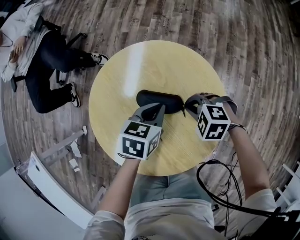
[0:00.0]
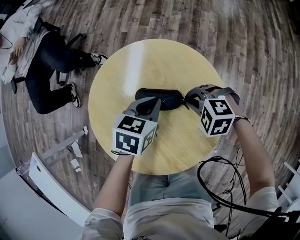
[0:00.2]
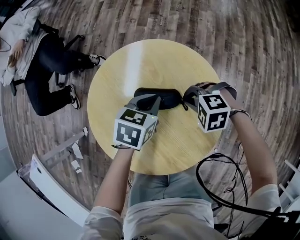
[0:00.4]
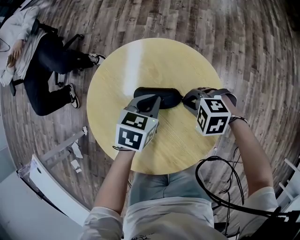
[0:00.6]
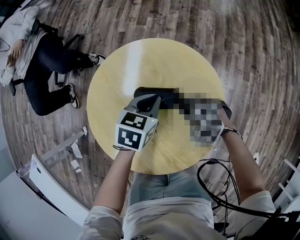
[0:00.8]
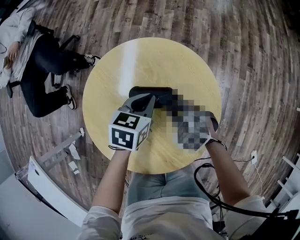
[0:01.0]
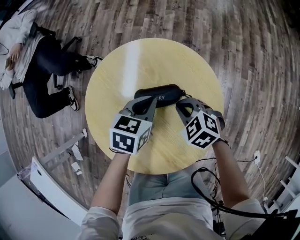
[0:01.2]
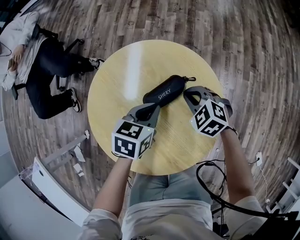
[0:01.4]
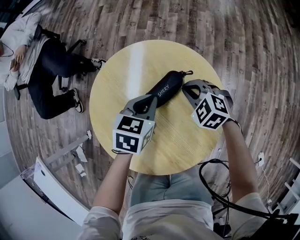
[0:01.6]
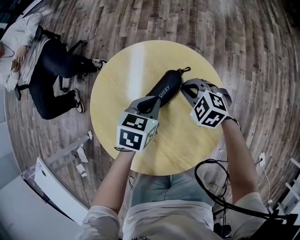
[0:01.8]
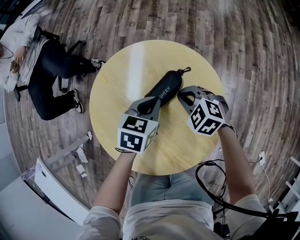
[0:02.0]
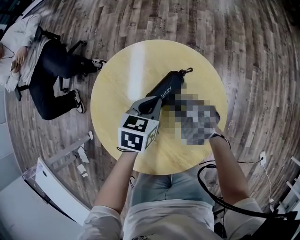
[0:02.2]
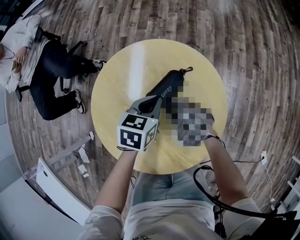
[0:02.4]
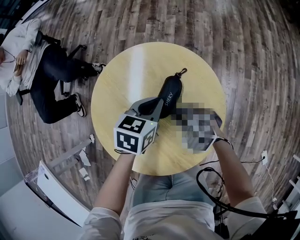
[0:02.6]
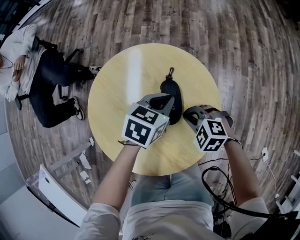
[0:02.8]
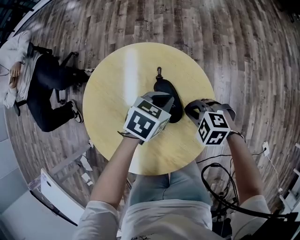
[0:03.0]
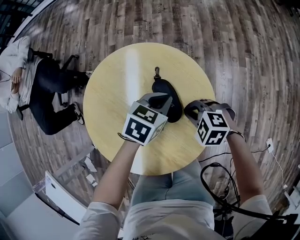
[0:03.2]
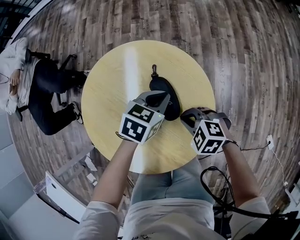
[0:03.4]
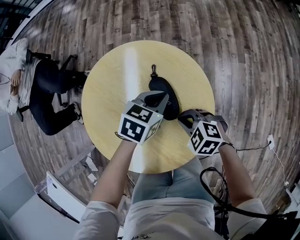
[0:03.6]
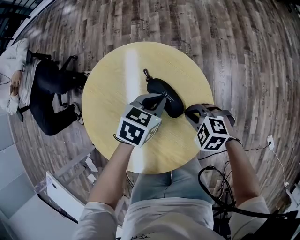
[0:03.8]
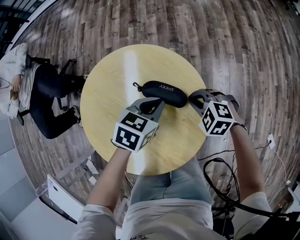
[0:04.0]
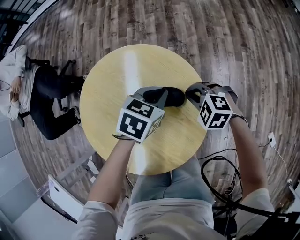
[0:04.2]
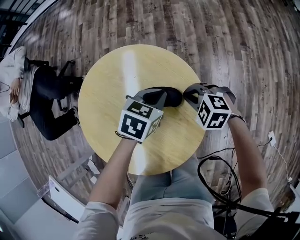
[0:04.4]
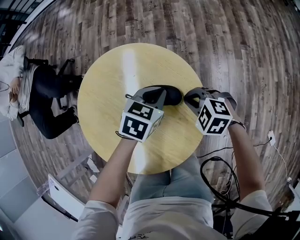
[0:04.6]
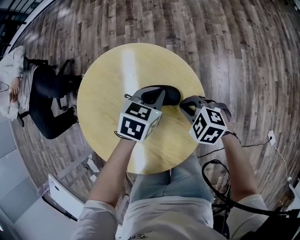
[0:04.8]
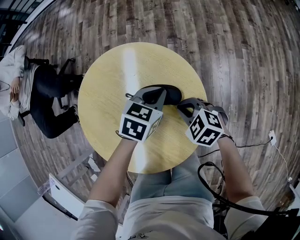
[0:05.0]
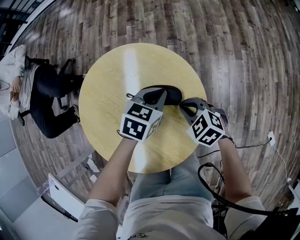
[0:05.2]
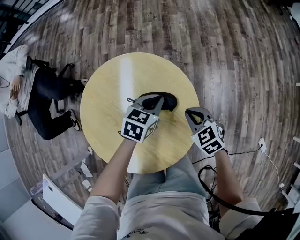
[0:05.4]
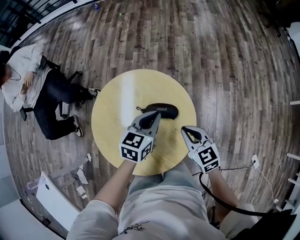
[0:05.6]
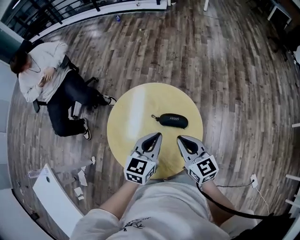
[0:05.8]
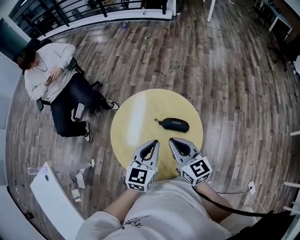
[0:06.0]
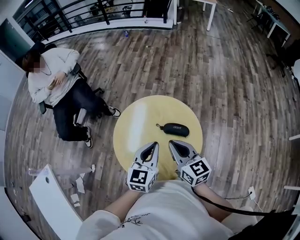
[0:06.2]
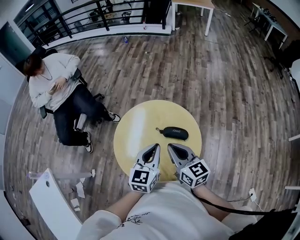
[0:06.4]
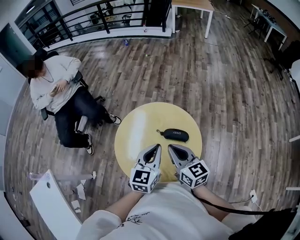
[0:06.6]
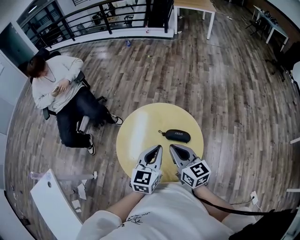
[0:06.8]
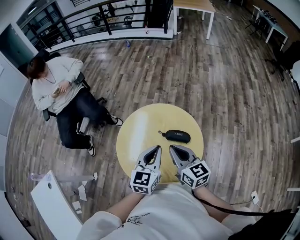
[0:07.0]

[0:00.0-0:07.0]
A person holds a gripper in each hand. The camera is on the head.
0:00.0 to 0:01.4: The right gripper turns by about 30 degrees.
0:01.4 to 0:02.8: The left gripper shifts by about 5 cm; the right gripper changes place by approximately 10 cm.
0:02.8 to 0:04.2: The right gripper moves roughly 10 cm, while the left gripper moves approximately 5 cm.
0:04.2 to 0:05.6: The left gripper shifts about 10 cm upward, and rotates roughly 30 degrees; the right gripper goes approximately 15 cm upward and backward, and turns by some 50 degrees.
0:05.6 to 0:07.0: The right gripper heads upward and to the left, covering roughly 25 cm, and changes its angle by approximately 20 degrees, while the left gripper moves upward, to the left and backward, about 20 cm, and swivels roughly 20 degrees.

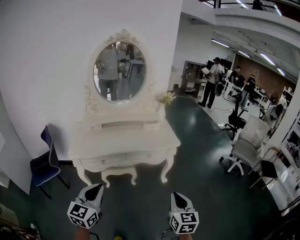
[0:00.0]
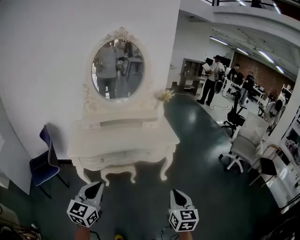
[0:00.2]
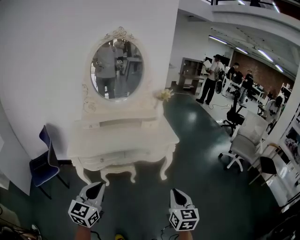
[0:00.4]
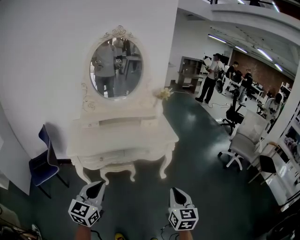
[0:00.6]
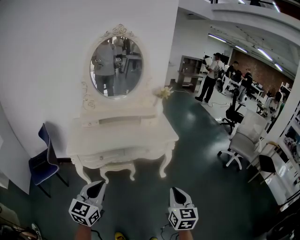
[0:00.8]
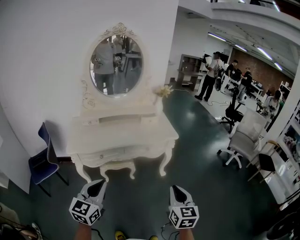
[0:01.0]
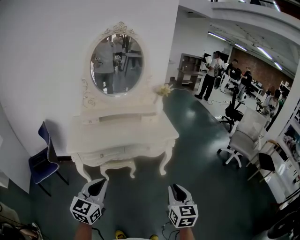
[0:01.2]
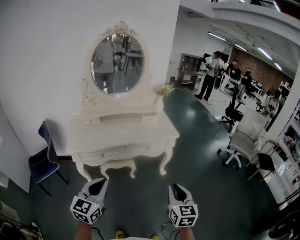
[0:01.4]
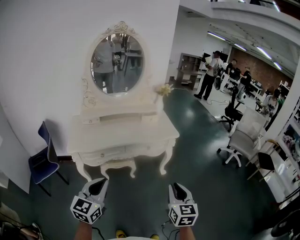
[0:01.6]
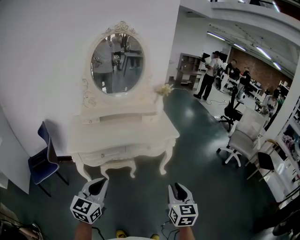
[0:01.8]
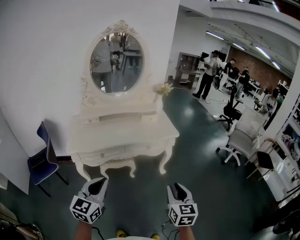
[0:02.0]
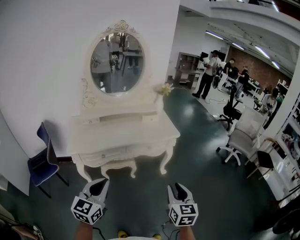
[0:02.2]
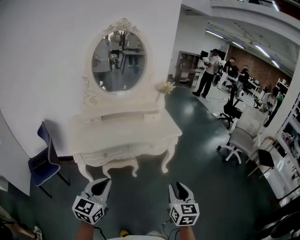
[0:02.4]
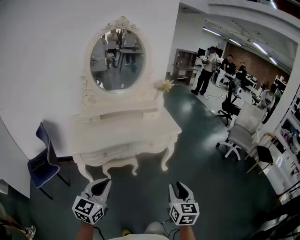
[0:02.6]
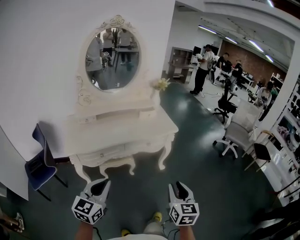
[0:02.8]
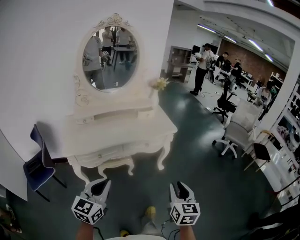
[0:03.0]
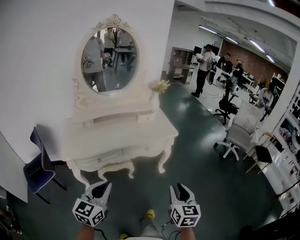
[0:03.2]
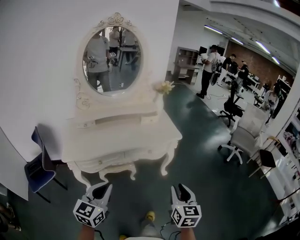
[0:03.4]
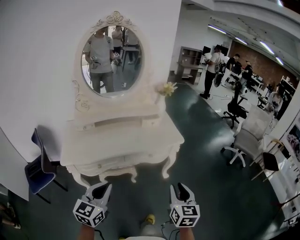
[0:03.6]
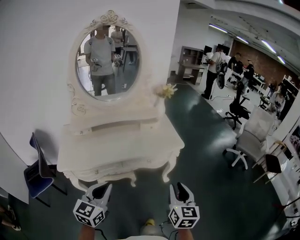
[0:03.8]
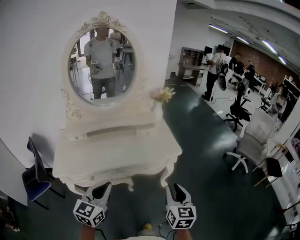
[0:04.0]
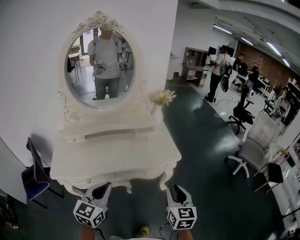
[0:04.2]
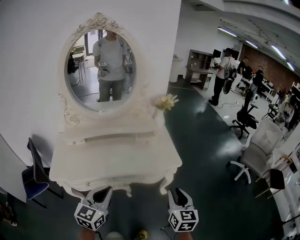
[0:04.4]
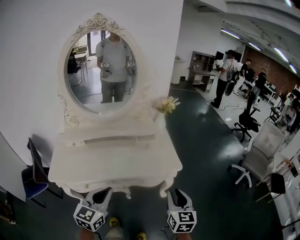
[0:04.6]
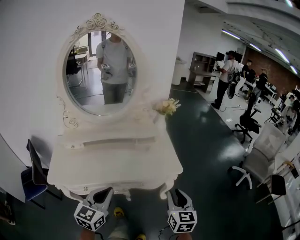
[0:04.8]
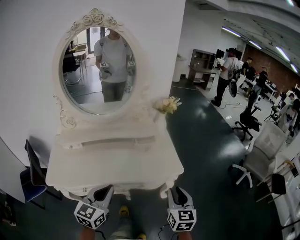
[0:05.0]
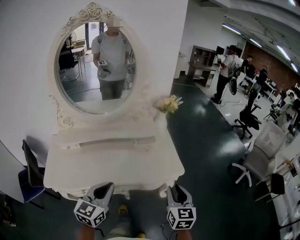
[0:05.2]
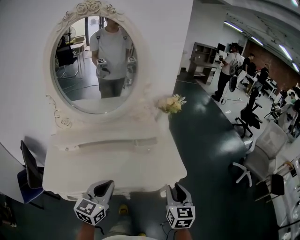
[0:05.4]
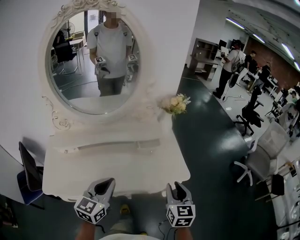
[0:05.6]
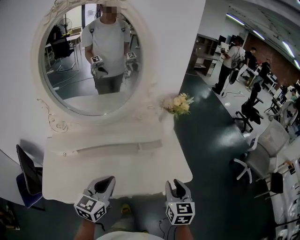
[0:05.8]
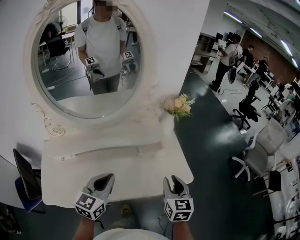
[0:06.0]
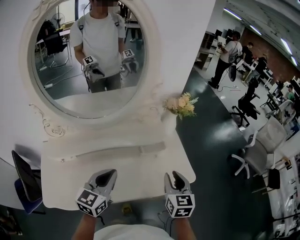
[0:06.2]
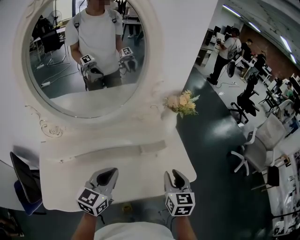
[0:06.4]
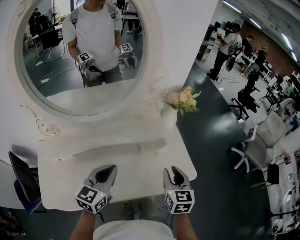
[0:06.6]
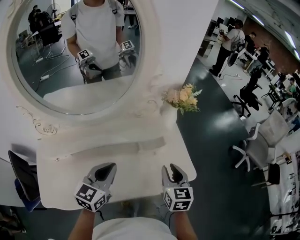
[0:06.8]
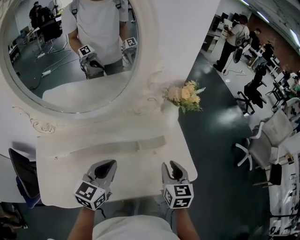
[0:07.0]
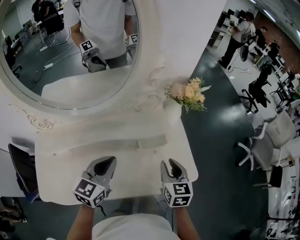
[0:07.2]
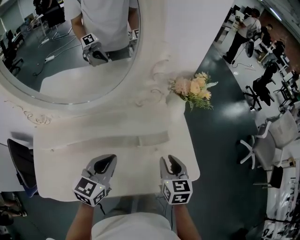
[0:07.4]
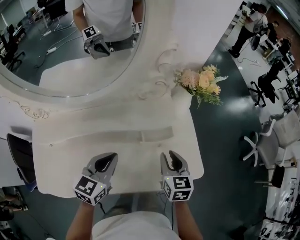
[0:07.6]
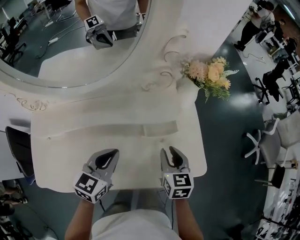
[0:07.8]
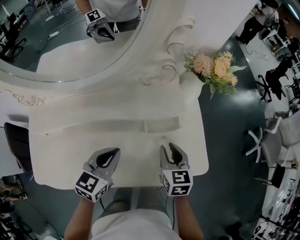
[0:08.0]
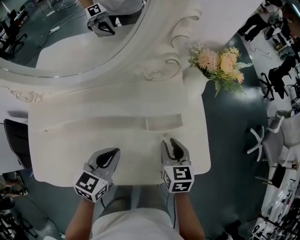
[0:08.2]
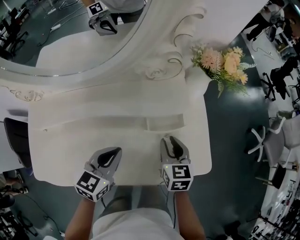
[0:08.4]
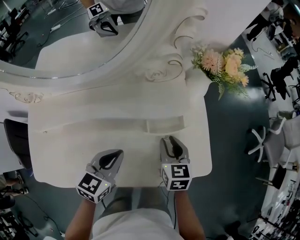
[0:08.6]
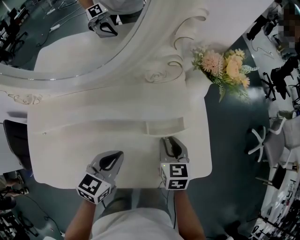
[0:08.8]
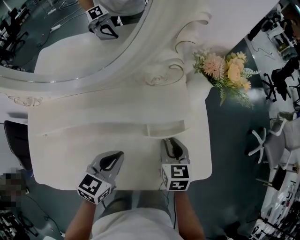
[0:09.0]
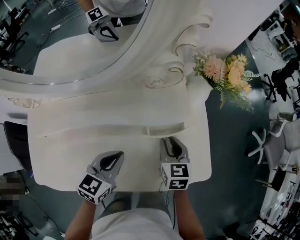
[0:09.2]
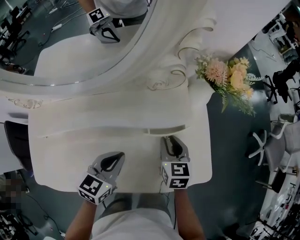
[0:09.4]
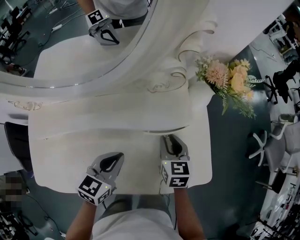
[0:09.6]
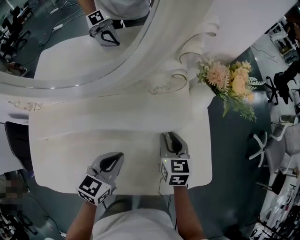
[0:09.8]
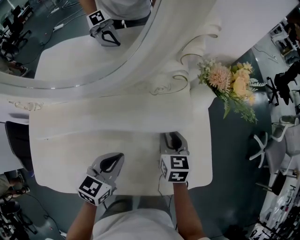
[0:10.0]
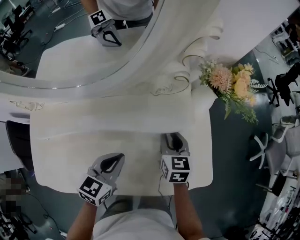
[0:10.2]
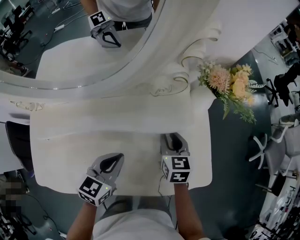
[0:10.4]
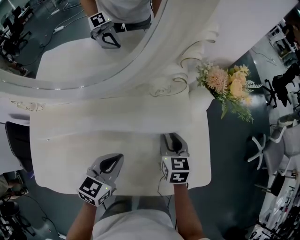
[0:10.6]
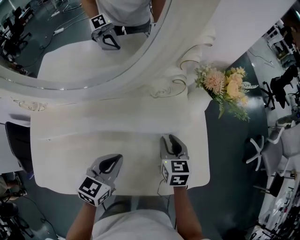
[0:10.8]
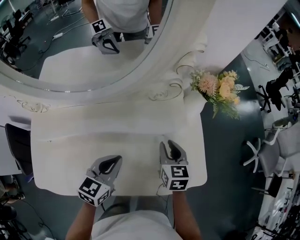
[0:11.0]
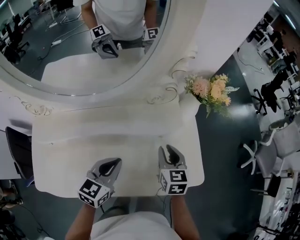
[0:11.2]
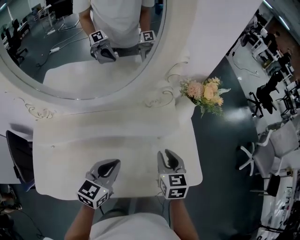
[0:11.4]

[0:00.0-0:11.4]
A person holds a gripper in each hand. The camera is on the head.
0:00.0 to 0:01.4: The grippers move only a little.
0:01.4 to 0:02.8: The left gripper moves approximately 5 cm.
0:02.8 to 0:04.2: Both grippers move forward, about 30 cm.
0:04.2 to 0:05.6: Both grippers move forward, roughly 20 cm.
0:05.6 to 0:07.2: The left gripper goes approximately 20 cm forward. Meanwhile the right gripper shifts roughly 20 cm forward and to the left.
0:07.2 to 0:08.6: The left gripper heads downward, covering about 15 cm. The right gripper travels downward and forward by approximately 15 cm.
0:08.6 to 0:10.0: The right gripper goes some 10 cm forward.
0:10.0 to 0:11.4: The right gripper is displaced backward and upward by approximately 10 cm; the left gripper shifts approximately 5 cm upward.

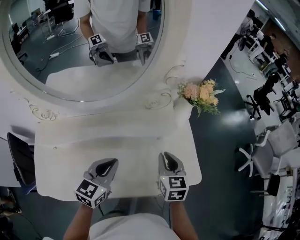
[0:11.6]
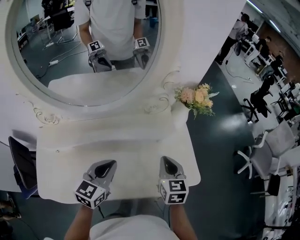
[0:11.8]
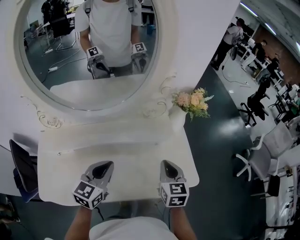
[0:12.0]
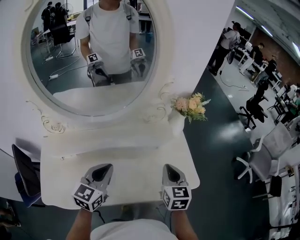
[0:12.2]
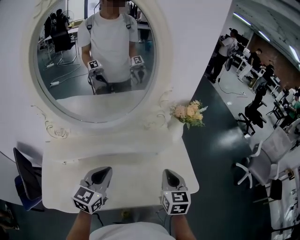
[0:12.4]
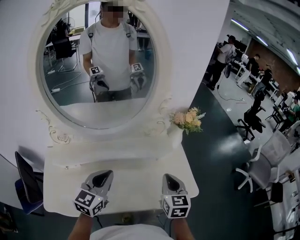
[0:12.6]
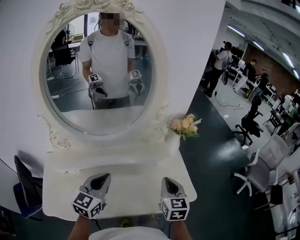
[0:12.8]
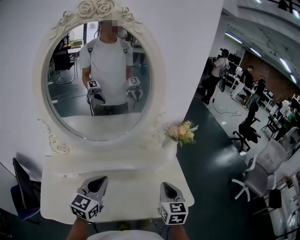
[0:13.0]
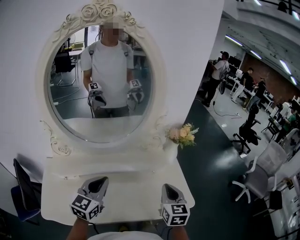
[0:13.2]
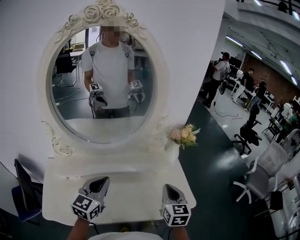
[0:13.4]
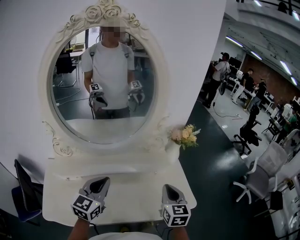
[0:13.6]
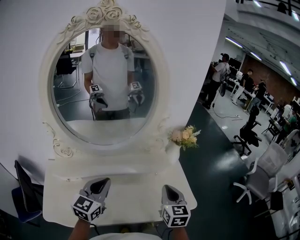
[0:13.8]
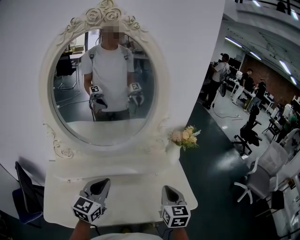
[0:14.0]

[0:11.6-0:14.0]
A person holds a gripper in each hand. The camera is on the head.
0:11.6 to 0:12.8: The right gripper moves upward and backward, approximately 10 cm, while the left gripper goes approximately 10 cm upward.
0:12.8 to 0:14.0: There are only small adjustments of the grippers.

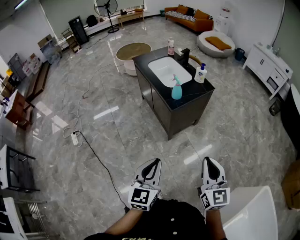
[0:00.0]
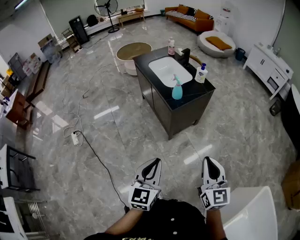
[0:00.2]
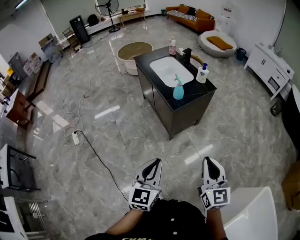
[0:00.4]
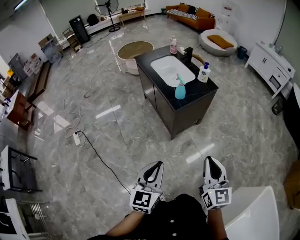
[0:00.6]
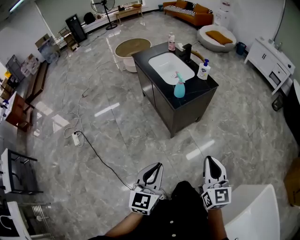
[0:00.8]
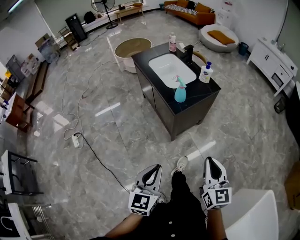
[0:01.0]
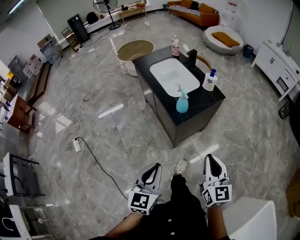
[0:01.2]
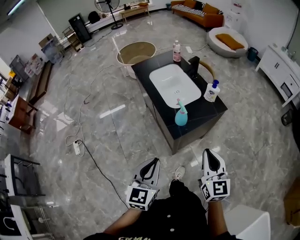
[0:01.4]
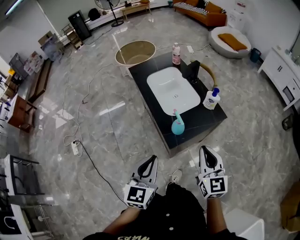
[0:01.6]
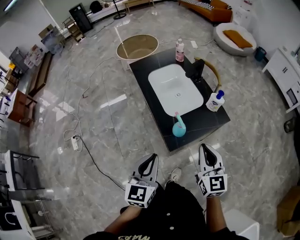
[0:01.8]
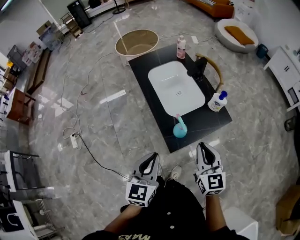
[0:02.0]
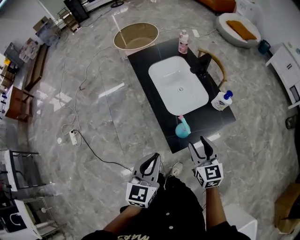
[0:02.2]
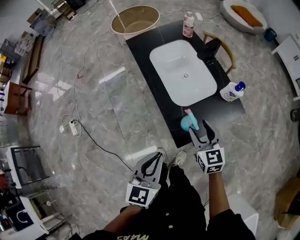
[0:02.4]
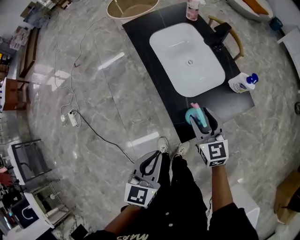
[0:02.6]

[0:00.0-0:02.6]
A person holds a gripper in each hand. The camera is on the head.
0:00.0 to 0:01.2: The two grippers go about 15 cm forward.
0:01.2 to 0:02.6: The two grippers go roughly 35 cm forward. The right gripper swivels some 20 degrees, and opens up.
